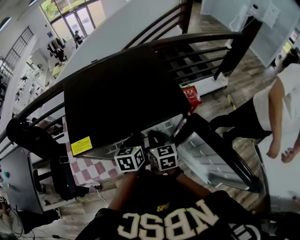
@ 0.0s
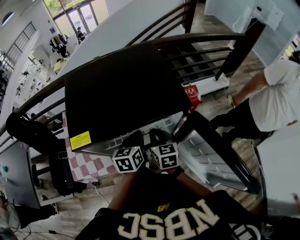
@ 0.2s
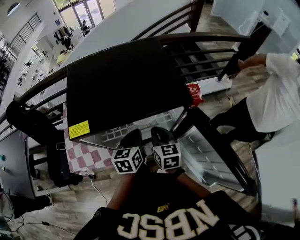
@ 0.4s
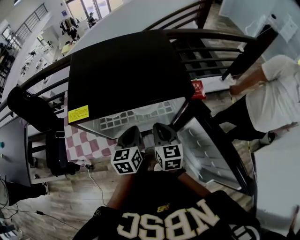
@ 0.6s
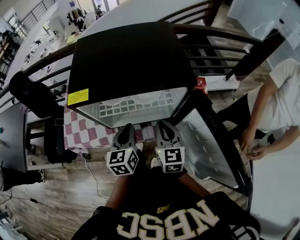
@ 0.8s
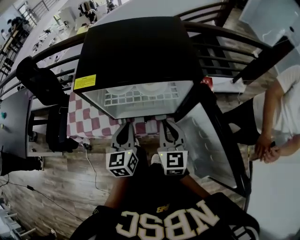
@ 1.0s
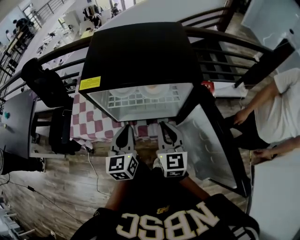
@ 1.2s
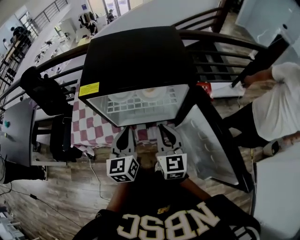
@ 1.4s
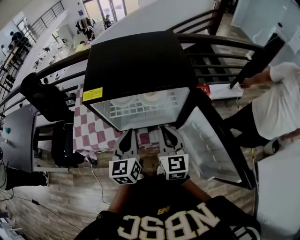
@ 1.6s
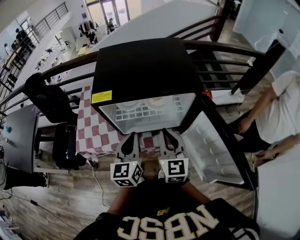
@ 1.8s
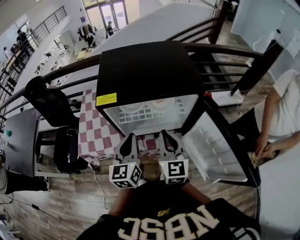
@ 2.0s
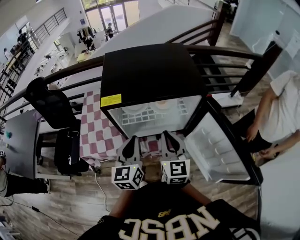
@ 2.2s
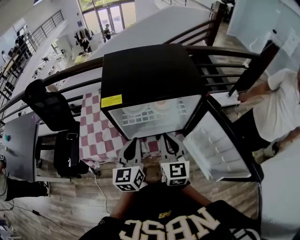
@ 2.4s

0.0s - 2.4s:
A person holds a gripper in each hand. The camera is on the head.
0.0s - 1.2s: The right gripper moves roughly 15 cm, and rotates approximately 20 degrees.
1.2s - 2.4s: The right gripper changes place by some 5 cm.

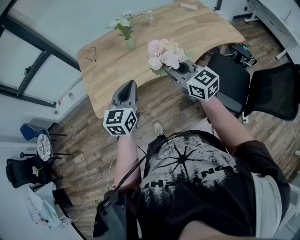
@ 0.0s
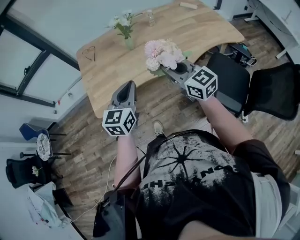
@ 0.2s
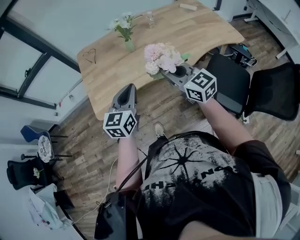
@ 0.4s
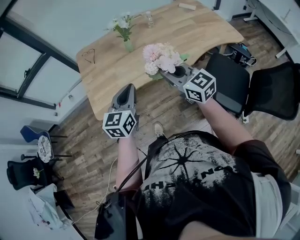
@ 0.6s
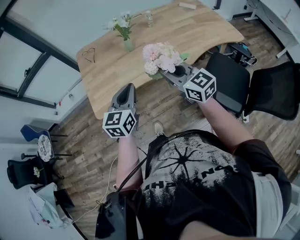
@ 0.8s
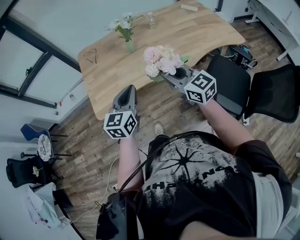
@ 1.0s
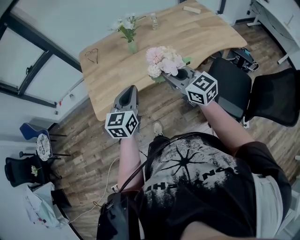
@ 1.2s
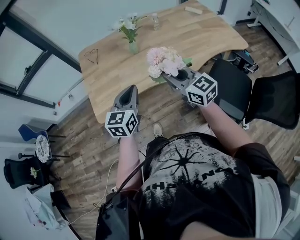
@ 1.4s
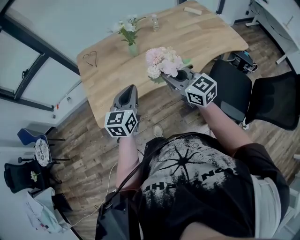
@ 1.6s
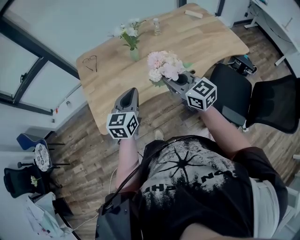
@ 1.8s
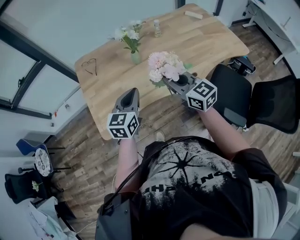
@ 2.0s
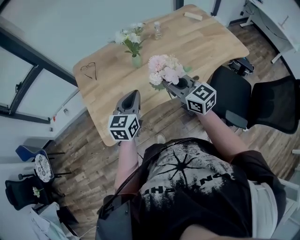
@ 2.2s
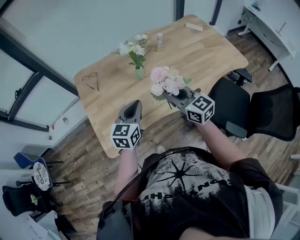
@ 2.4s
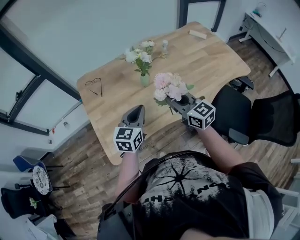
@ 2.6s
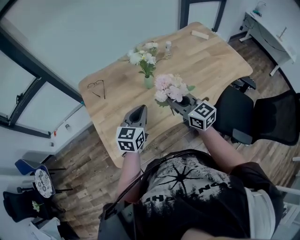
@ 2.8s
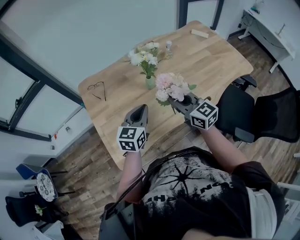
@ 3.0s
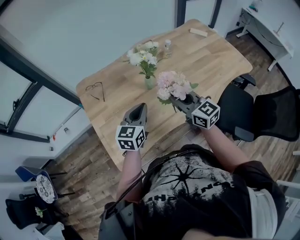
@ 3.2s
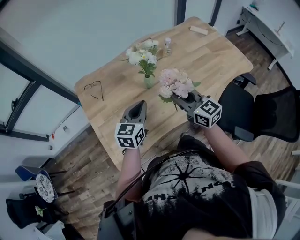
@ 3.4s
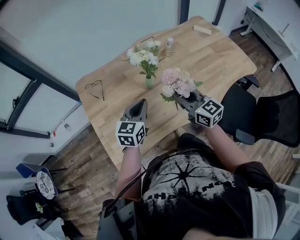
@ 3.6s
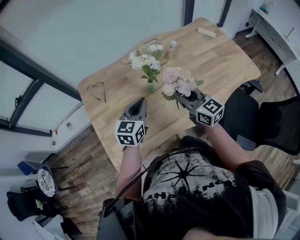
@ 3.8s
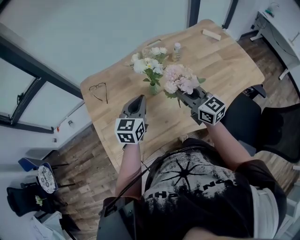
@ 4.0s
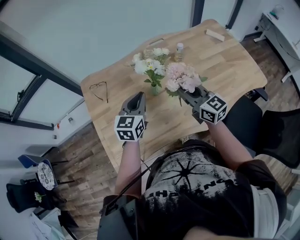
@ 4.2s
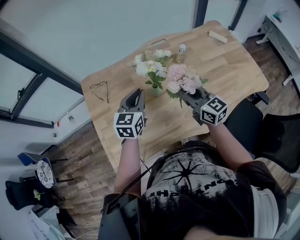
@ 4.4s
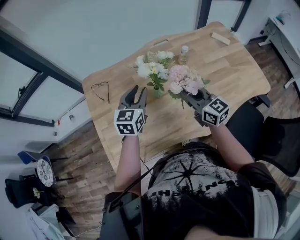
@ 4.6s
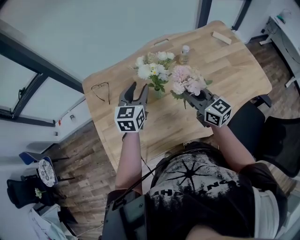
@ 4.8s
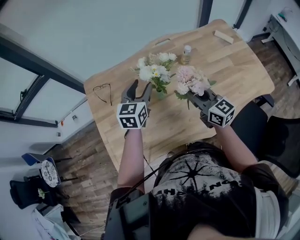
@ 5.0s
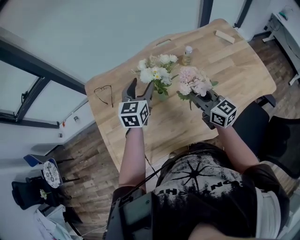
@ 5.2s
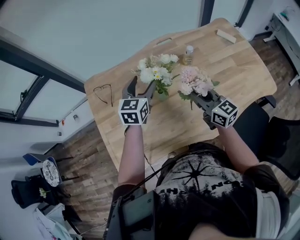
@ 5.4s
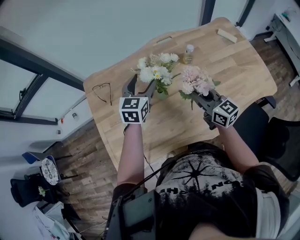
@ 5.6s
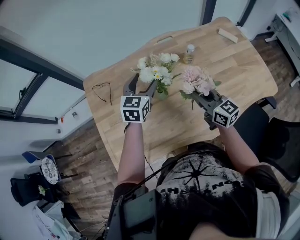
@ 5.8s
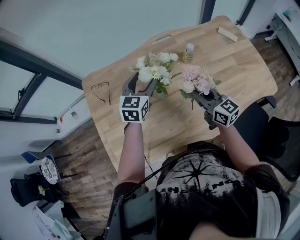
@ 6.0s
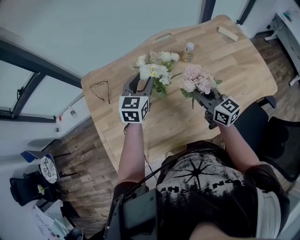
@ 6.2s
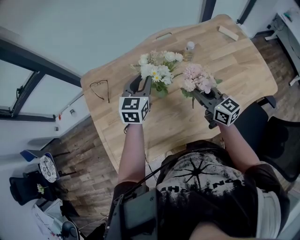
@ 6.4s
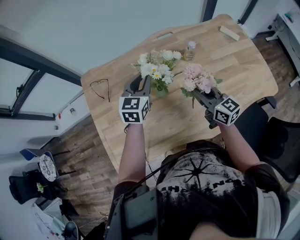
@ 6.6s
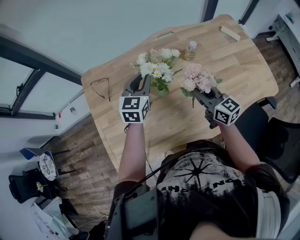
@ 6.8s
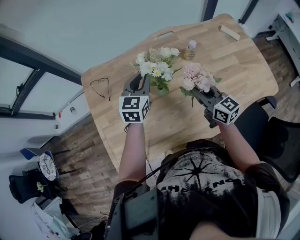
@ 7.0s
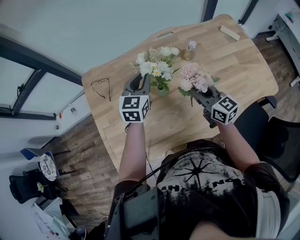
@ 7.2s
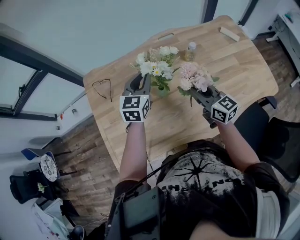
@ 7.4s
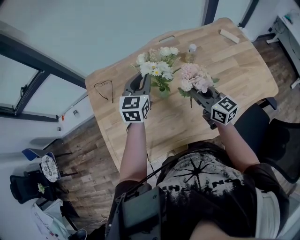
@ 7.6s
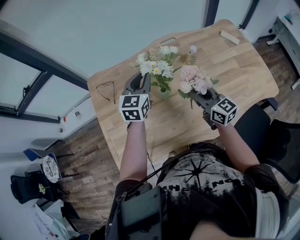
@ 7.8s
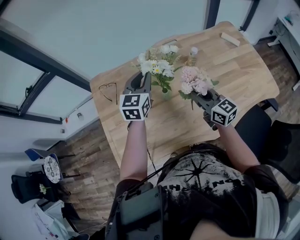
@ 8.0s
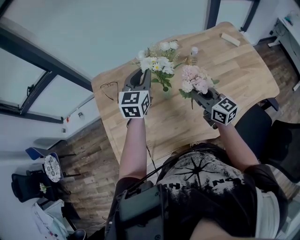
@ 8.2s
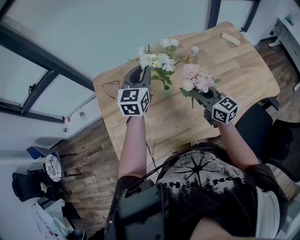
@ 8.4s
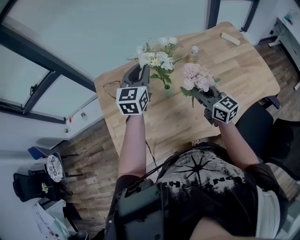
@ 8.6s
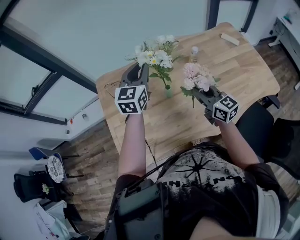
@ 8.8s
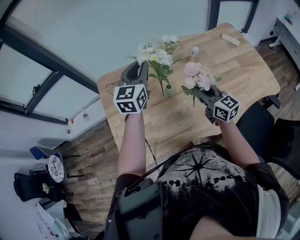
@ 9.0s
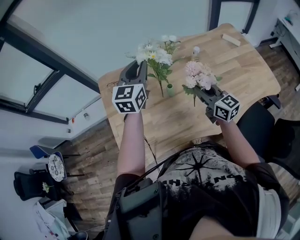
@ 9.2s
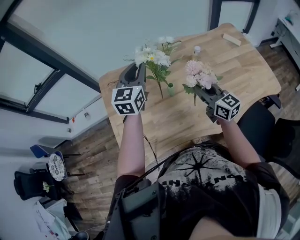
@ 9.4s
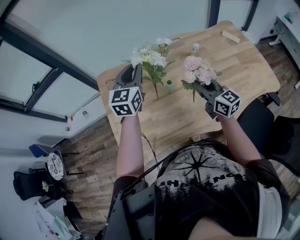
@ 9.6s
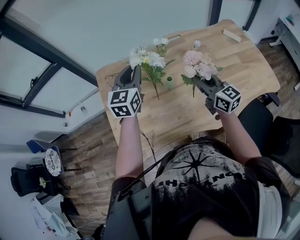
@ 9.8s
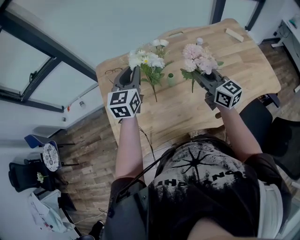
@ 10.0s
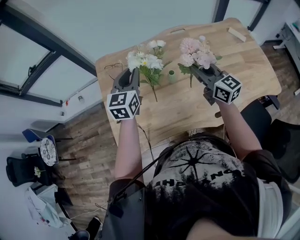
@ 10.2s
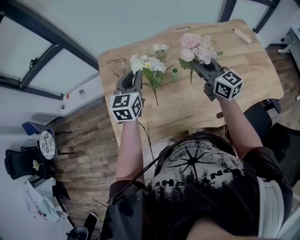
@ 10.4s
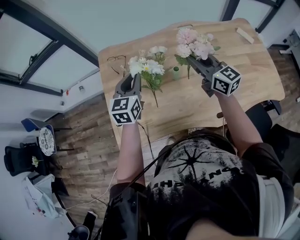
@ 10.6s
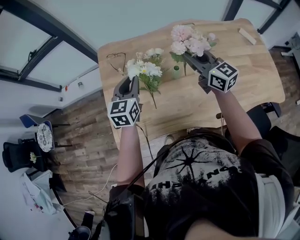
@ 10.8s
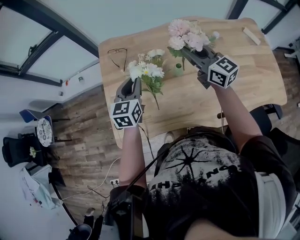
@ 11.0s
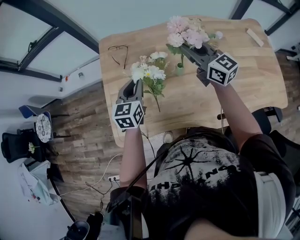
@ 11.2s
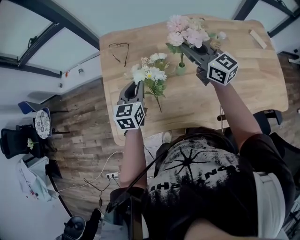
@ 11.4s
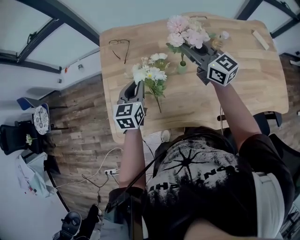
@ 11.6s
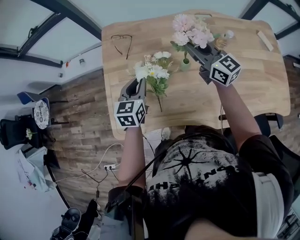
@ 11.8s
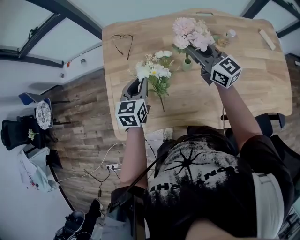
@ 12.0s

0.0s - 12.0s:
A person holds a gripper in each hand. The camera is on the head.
0.0s - 1.6s: Both grippers travel together forward, roughly 5 cm.
1.6s - 3.0s: The right gripper heads forward and to the left, covering some 20 cm. The left gripper is displaced forward by about 20 cm.
3.0s - 4.4s: The right gripper heads forward and to the right, covering about 15 cm, while the left gripper travels forward by about 15 cm.
4.4s - 6.0s: The left gripper travels forward by some 10 cm, and opens up; the right gripper moves roughly 5 cm.
6.0s - 7.6s: The left gripper closes.
7.6s - 9.0s: The left gripper shifts some 10 cm upward.
9.0s - 10.4s: The right gripper travels forward by approximately 5 cm; the left gripper travels to the left, downward and backward by approximately 15 cm.
10.4s - 12.0s: The right gripper moves forward and to the left, about 10 cm. The left gripper moves downward, roughly 10 cm.

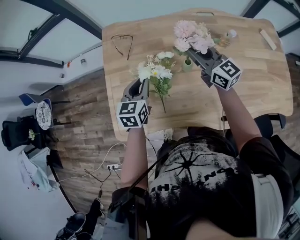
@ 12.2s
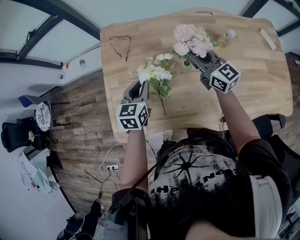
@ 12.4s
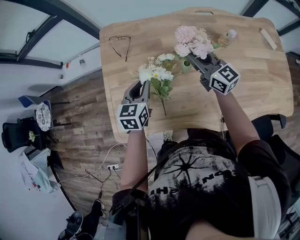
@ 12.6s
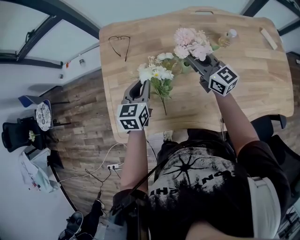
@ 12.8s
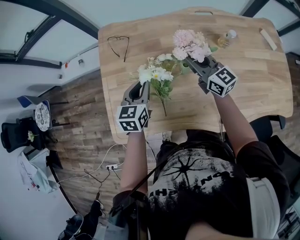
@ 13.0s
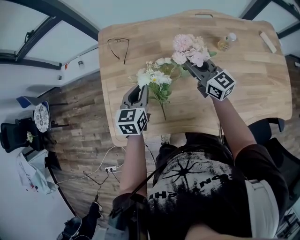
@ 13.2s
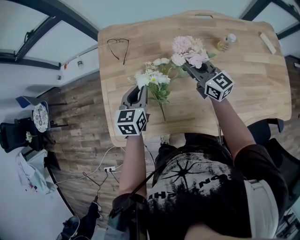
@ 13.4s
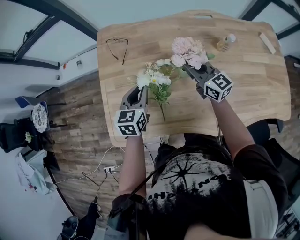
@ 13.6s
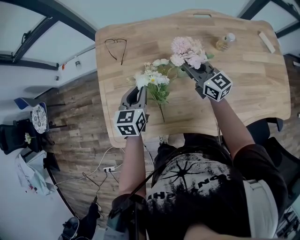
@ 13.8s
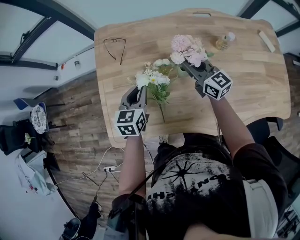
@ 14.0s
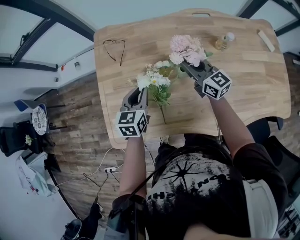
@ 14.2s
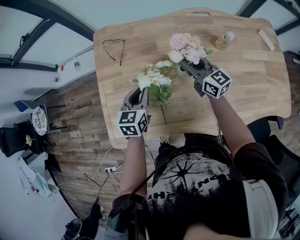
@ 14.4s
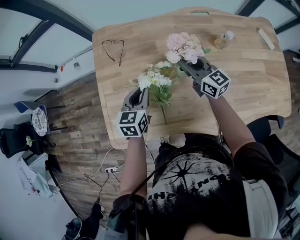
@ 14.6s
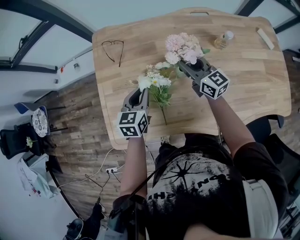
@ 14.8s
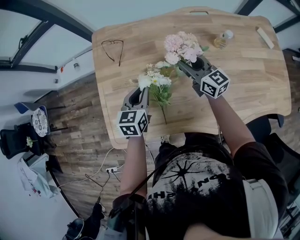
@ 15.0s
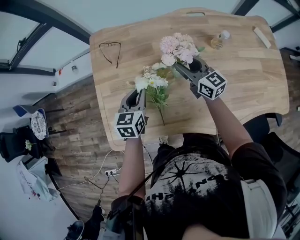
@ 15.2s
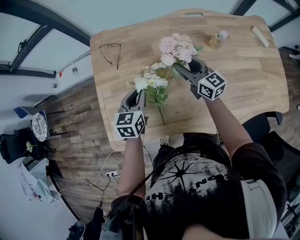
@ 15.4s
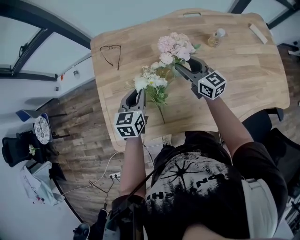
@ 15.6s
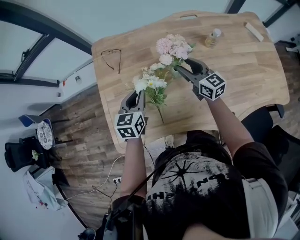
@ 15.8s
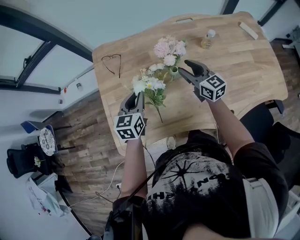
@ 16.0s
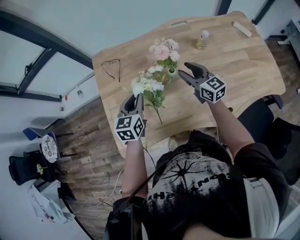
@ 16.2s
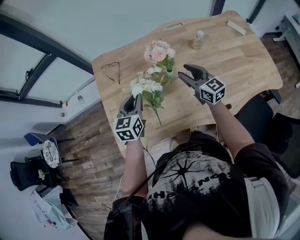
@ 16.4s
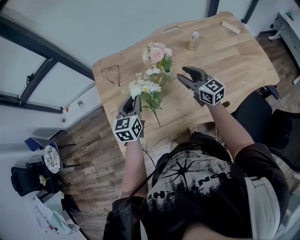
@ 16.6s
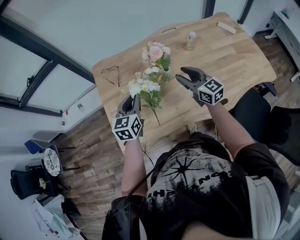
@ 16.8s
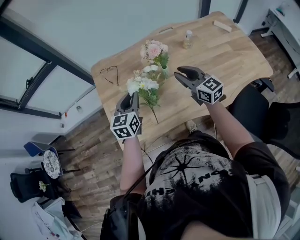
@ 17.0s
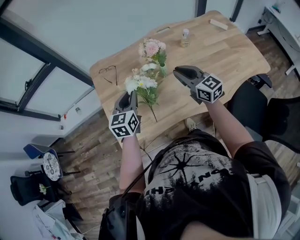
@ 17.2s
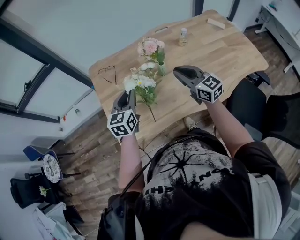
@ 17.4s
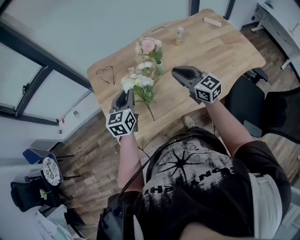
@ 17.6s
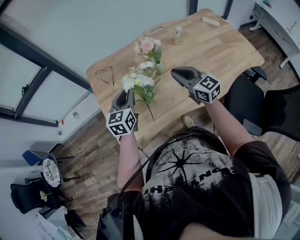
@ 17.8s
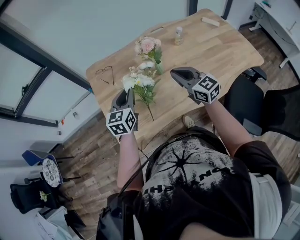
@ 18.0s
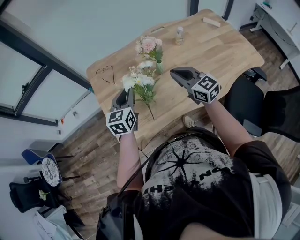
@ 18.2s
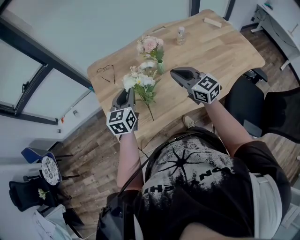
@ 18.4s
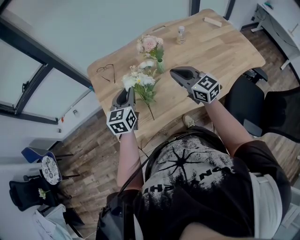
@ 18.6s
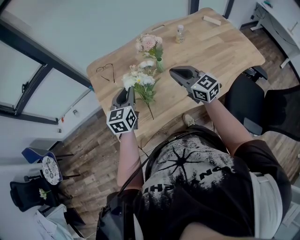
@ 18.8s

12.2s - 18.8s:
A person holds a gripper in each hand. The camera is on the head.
12.2s - 13.8s: The right gripper shifts some 10 cm downward.
13.8s - 15.4s: The right gripper opens its fingers.
15.4s - 17.2s: The left gripper heads upward and backward, covering about 10 cm. The right gripper moves backward and upward, approximately 20 cm, and closes up.
17.2s - 18.8s: There are only small adjustments of the grippers.

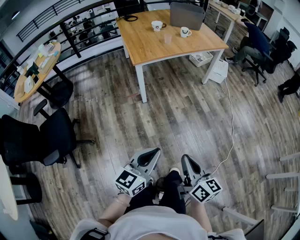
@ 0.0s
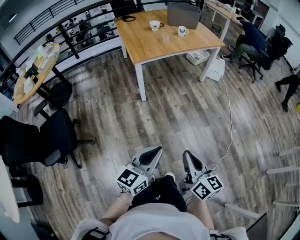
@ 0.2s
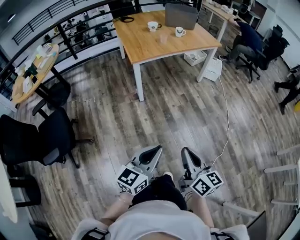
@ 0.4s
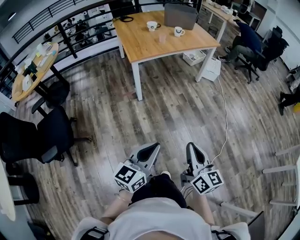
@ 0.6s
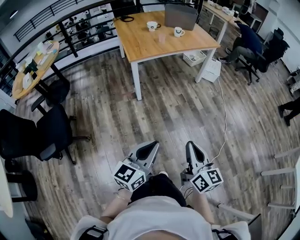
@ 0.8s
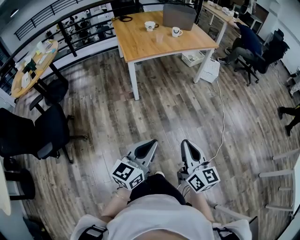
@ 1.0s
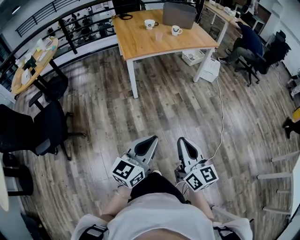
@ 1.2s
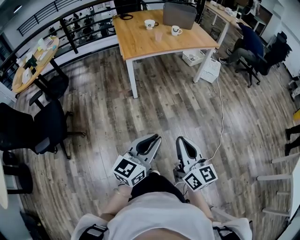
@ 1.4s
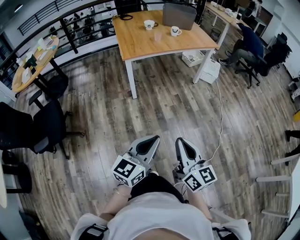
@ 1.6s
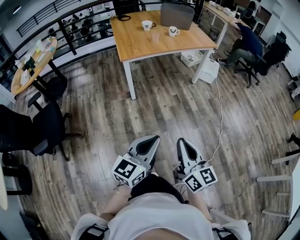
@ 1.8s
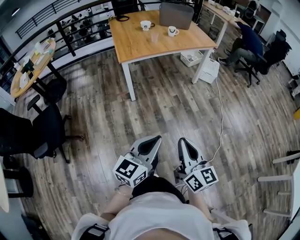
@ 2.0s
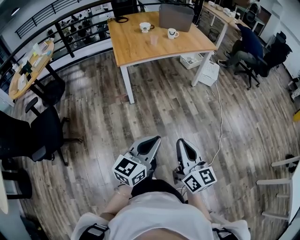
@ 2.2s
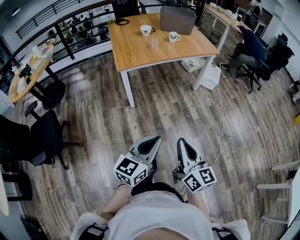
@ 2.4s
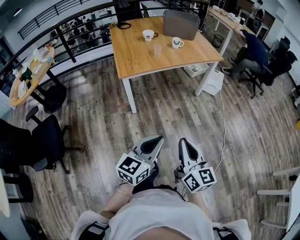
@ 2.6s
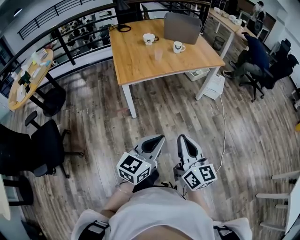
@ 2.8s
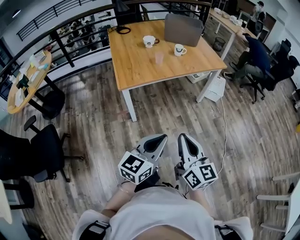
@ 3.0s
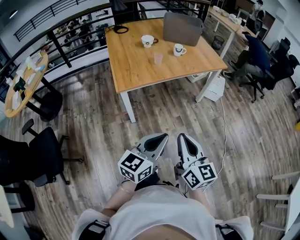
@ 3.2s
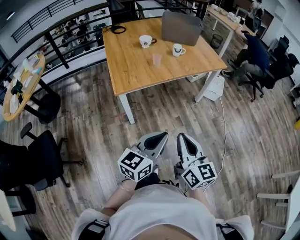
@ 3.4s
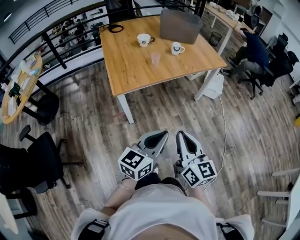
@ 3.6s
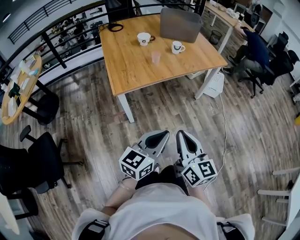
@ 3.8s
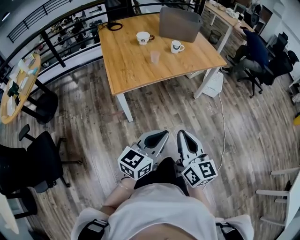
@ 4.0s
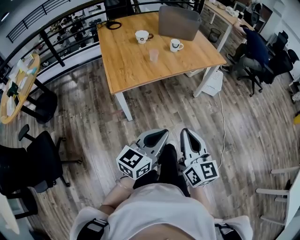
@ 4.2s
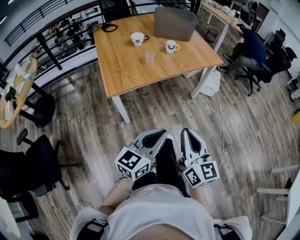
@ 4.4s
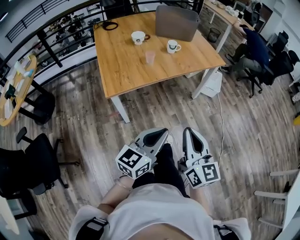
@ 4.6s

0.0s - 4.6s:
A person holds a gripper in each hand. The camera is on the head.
0.0s - 1.6s: The right gripper goes approximately 10 cm to the right and upward; the left gripper is displaced to the right by roughly 10 cm.
1.6s - 3.0s: The grippers both shift forward by some 25 cm.
3.0s - 4.6s: Both grippers travel together forward, about 10 cm.
